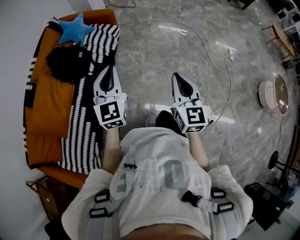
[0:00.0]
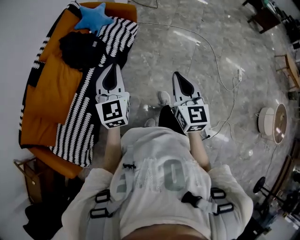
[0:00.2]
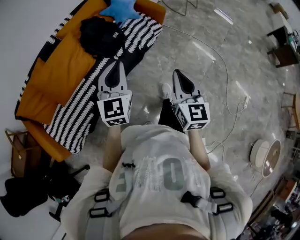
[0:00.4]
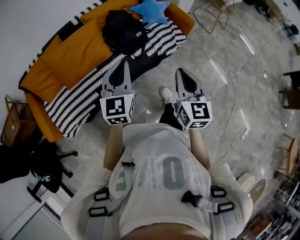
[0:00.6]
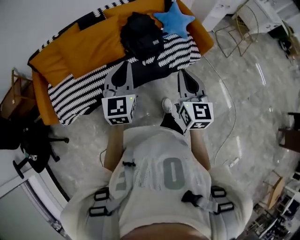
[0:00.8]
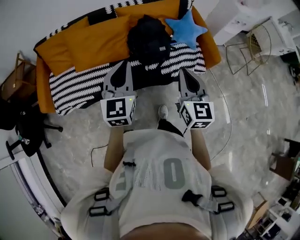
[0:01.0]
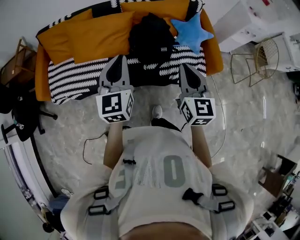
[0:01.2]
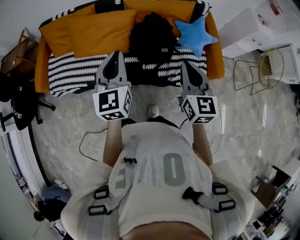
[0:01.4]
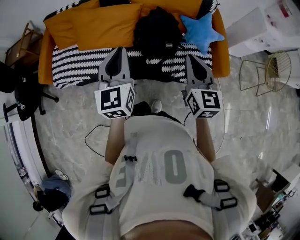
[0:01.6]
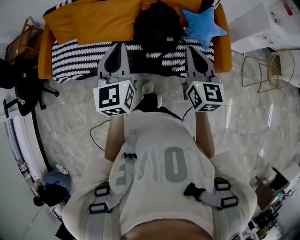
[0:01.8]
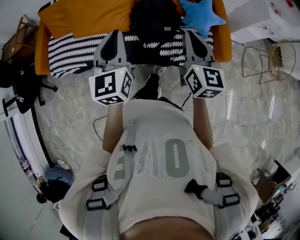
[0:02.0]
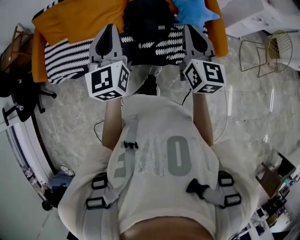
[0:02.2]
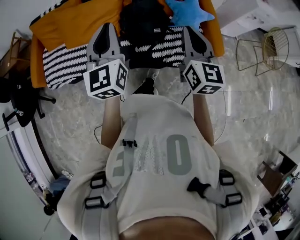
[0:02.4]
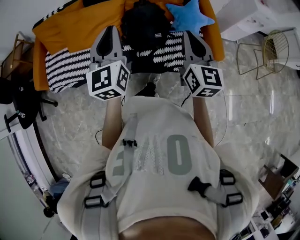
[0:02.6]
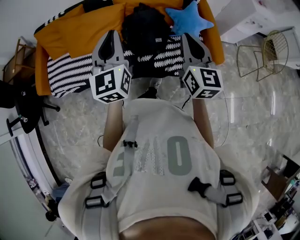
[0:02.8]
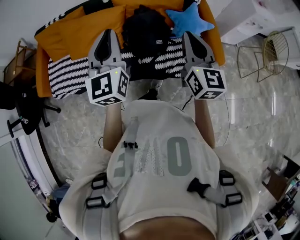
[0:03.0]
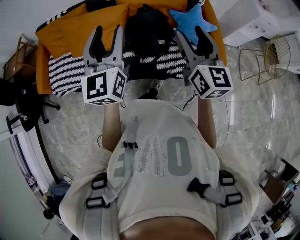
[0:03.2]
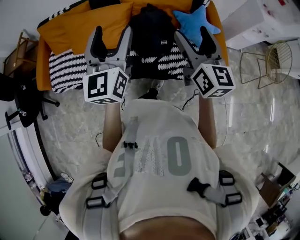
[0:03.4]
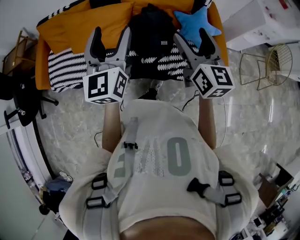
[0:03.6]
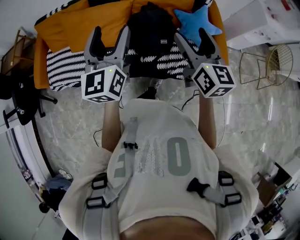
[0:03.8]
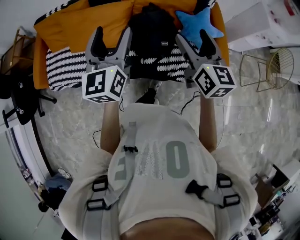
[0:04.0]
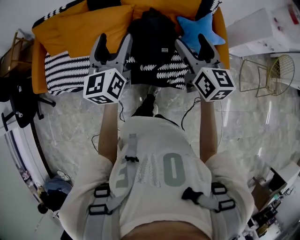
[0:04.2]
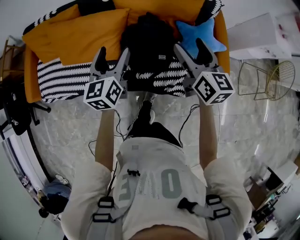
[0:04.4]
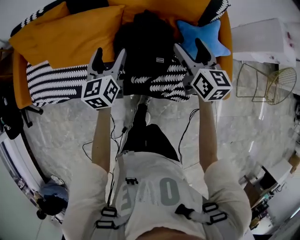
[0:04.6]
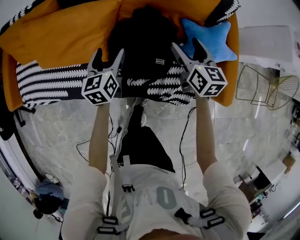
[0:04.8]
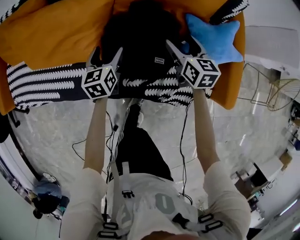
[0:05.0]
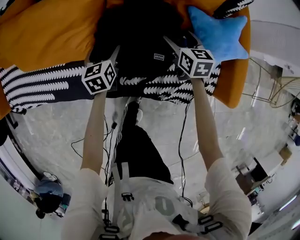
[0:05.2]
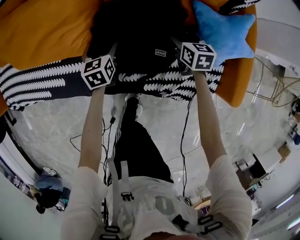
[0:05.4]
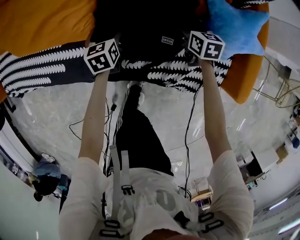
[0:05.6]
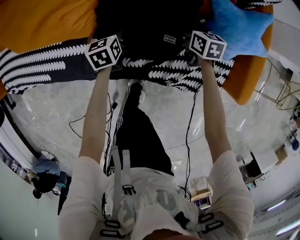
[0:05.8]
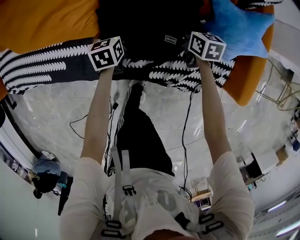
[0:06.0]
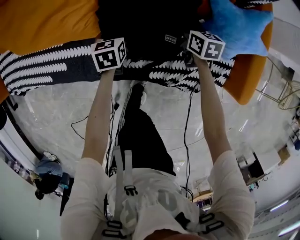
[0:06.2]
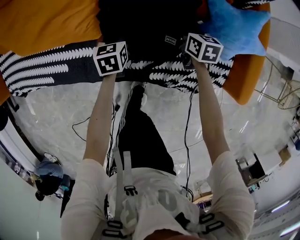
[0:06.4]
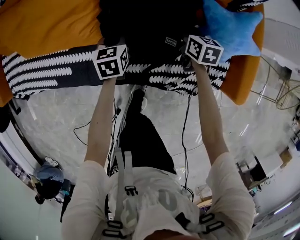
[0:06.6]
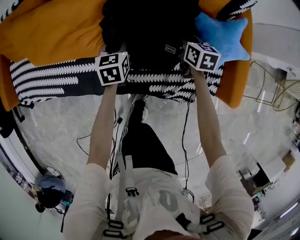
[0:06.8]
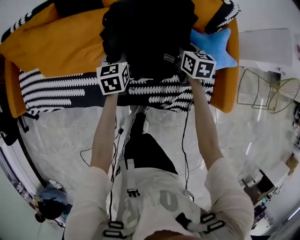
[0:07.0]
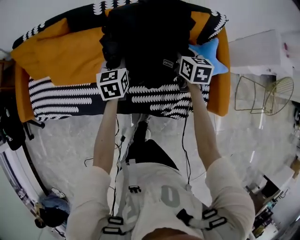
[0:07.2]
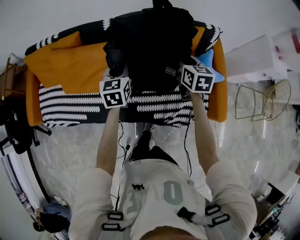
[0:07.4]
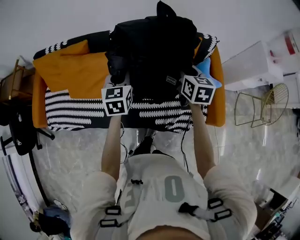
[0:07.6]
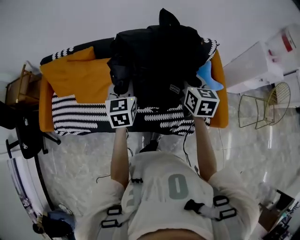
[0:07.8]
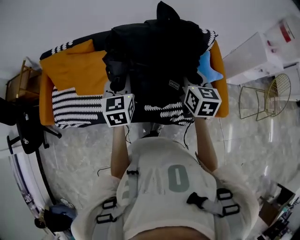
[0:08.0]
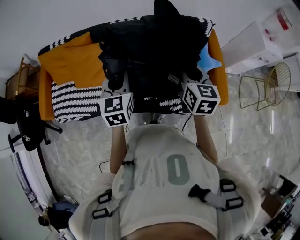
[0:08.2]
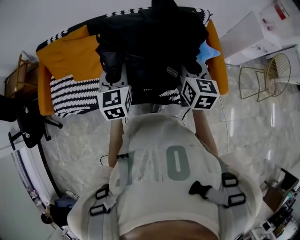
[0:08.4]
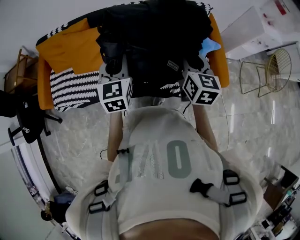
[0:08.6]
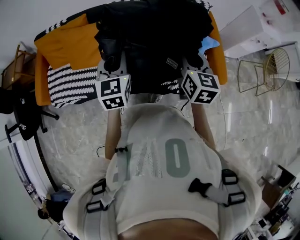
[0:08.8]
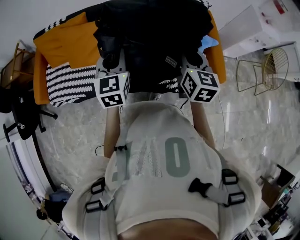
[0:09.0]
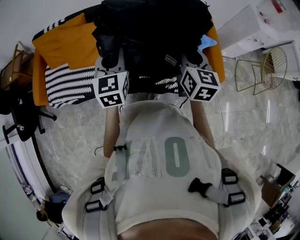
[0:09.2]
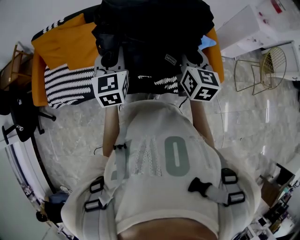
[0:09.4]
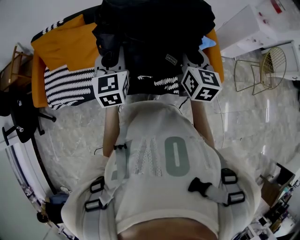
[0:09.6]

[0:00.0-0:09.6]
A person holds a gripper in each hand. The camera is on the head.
0:00.0 to 0:01.6: The right gripper ends up roughly 60 cm from where it was, and rotates roughly 80 degrees, while the left gripper moves about 30 cm, and rotates approximately 80 degrees.
0:01.6 to 0:03.2: The grippers both shift upward by roughly 5 cm. The right gripper opens up; the left gripper opens its fingers.
0:03.2 to 0:04.8: The two grippers go approximately 50 cm downward and forward. The right gripper swivels some 30 degrees. The left gripper tips its fingers downward by roughly 30 degrees, and opens up.
0:04.8 to 0:06.4: Both grippers move downward, some 25 cm. The right gripper rotates about 20 degrees, and closes. Meanwhile the left gripper turns by roughly 20 degrees, and closes its fingers.
0:06.4 to 0:08.0: The two grippers go about 50 cm upward. The right gripper swivels some 30 degrees; the left gripper changes its angle by roughly 30 degrees.
0:08.0 to 0:09.6: The grippers both shift backward by roughly 10 cm.

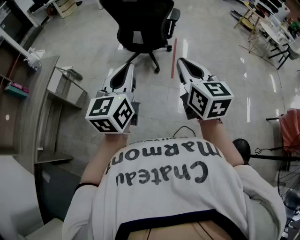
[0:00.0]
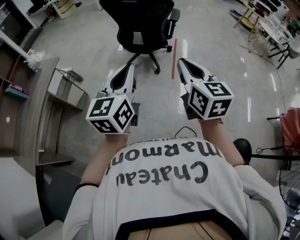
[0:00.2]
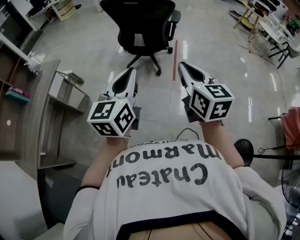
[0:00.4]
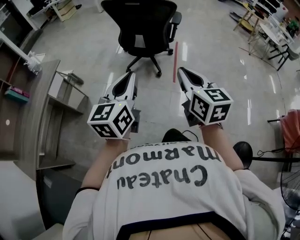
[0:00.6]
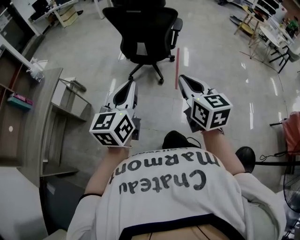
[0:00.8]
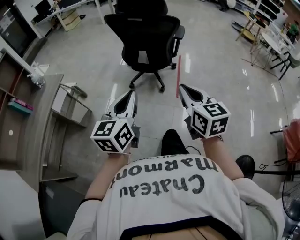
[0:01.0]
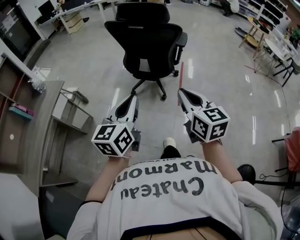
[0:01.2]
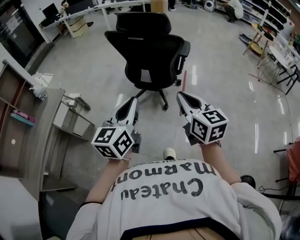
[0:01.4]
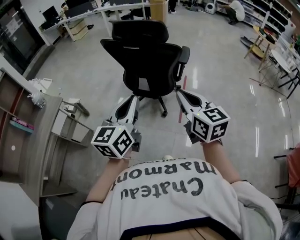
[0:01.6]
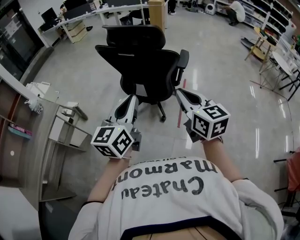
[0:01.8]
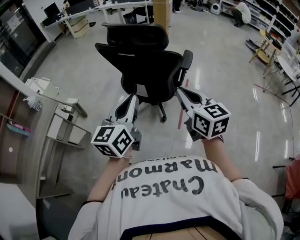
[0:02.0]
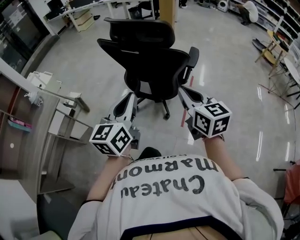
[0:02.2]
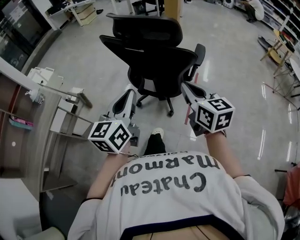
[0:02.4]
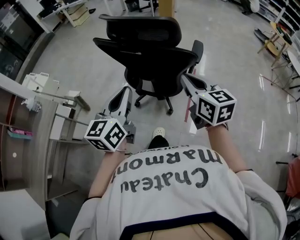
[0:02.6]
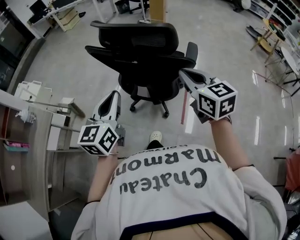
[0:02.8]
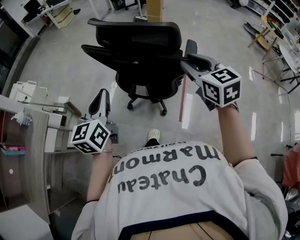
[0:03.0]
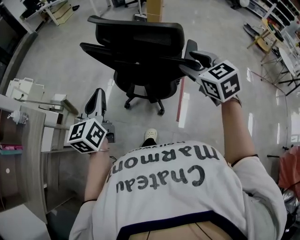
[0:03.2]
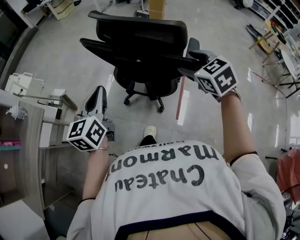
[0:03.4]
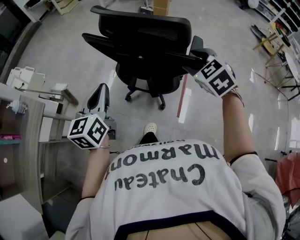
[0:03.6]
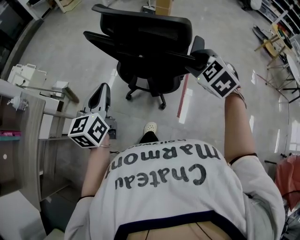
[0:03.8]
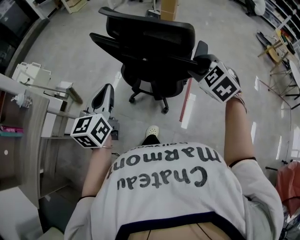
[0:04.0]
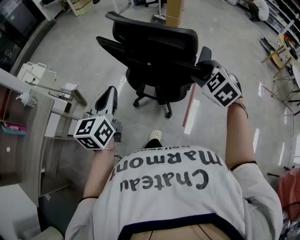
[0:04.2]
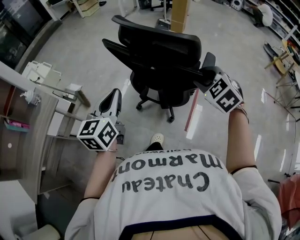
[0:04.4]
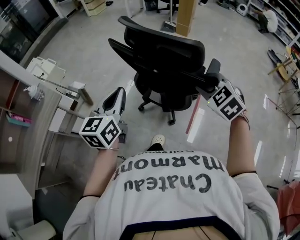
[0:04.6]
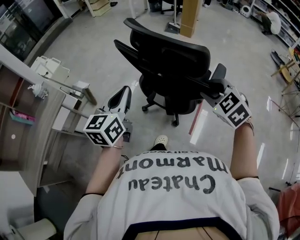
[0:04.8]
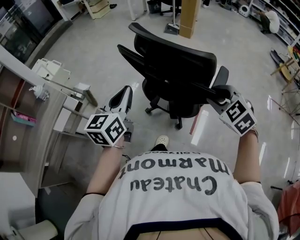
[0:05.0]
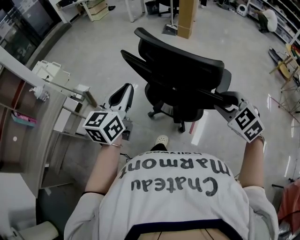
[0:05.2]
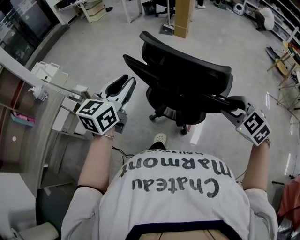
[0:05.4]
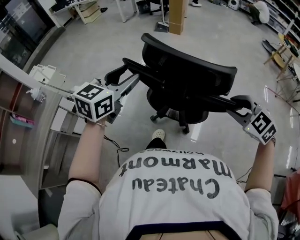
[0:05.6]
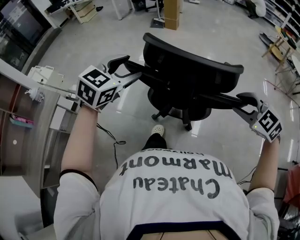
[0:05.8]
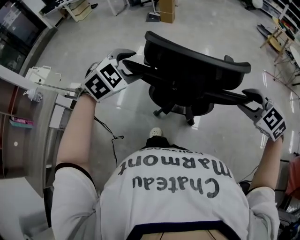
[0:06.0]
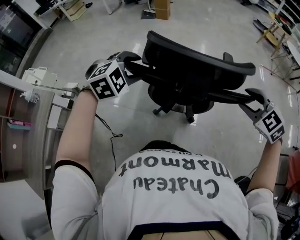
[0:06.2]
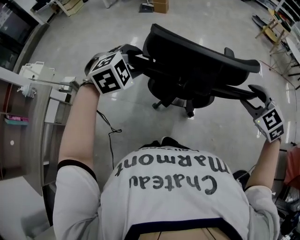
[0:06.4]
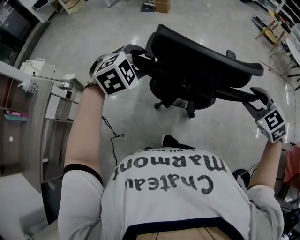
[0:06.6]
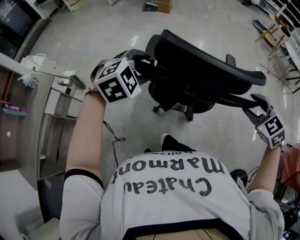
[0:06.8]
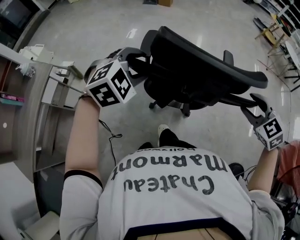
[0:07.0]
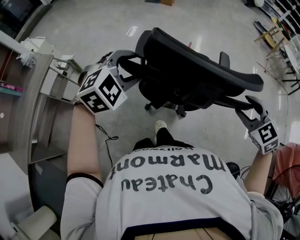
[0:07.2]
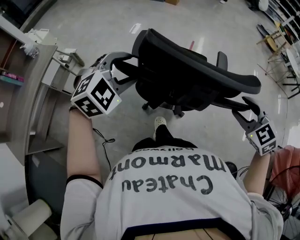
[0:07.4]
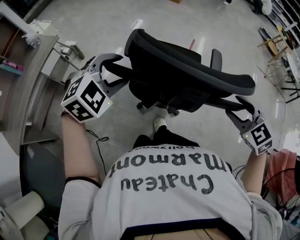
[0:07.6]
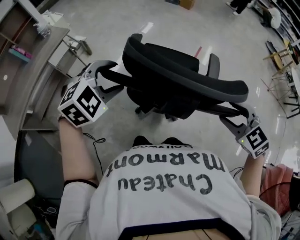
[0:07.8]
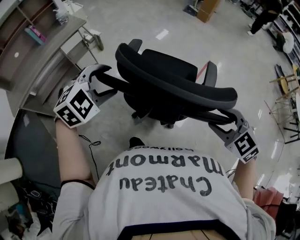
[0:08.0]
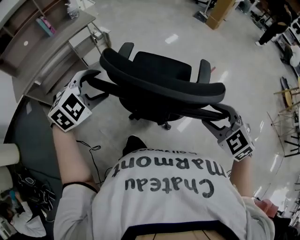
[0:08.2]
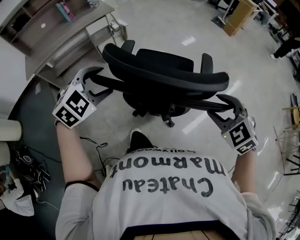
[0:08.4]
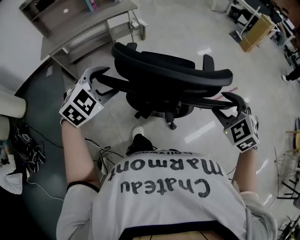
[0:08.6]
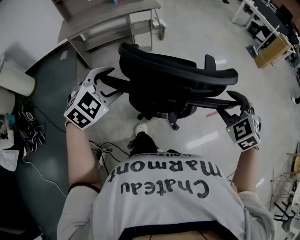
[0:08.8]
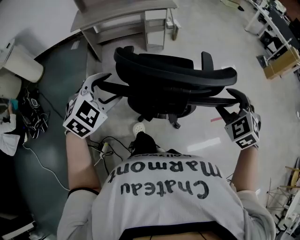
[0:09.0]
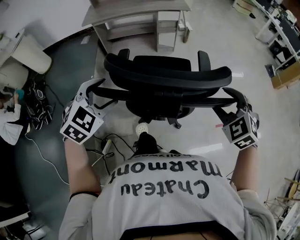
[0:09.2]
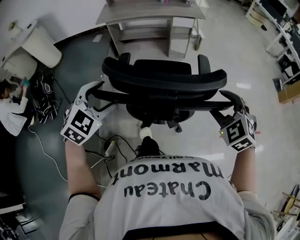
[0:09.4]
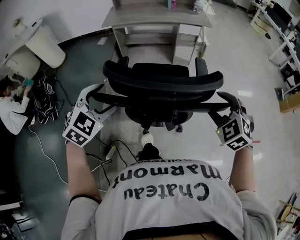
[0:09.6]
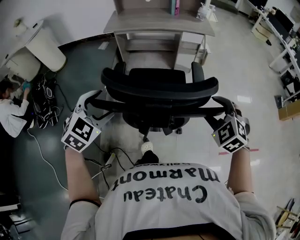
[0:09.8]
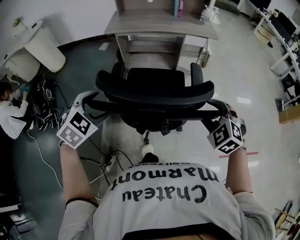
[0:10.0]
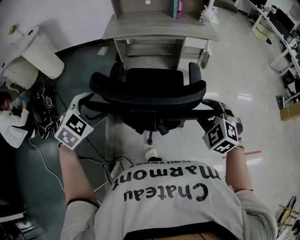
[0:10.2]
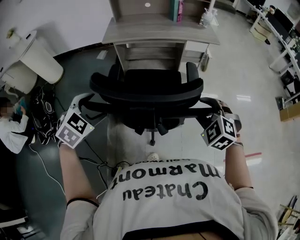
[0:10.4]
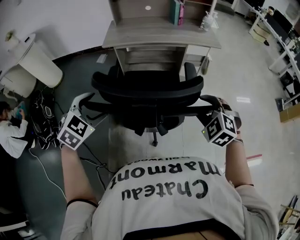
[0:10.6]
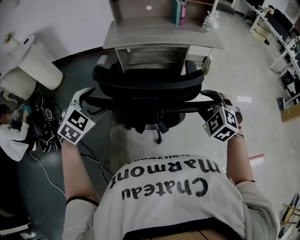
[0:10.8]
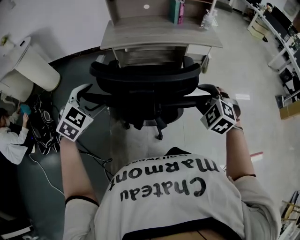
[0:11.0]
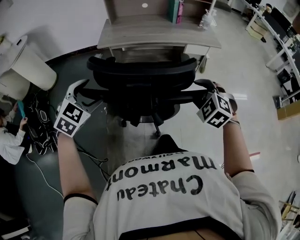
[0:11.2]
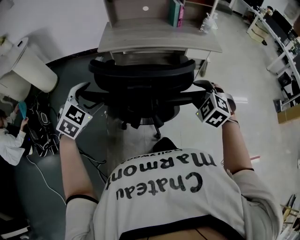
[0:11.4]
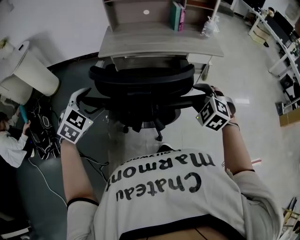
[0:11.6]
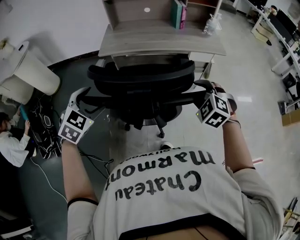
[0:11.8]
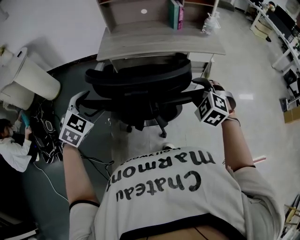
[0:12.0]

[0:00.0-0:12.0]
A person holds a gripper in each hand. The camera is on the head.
0:00.0 to 0:01.6: The two grippers go approximately 25 cm forward.
0:01.6 to 0:03.0: Both grippers travel together forward, roughly 25 cm. The right gripper opens up.
0:03.0 to 0:04.4: The right gripper moves downward, approximately 5 cm, turns by roughly 40 degrees, and opens, then closes again.
0:04.4 to 0:06.0: The left gripper goes about 15 cm to the right, twists about 60 degrees clockwise, seen from behind, and opens its fingers. The right gripper is displaced backward and to the right by about 35 cm.
0:06.0 to 0:07.6: Both grippers travel together backward, some 30 cm.
0:07.6 to 0:09.0: The left gripper moves roughly 30 cm, and rotates approximately 60 degrees, while the right gripper shifts by approximately 15 cm, and rolls counterclockwise, seen from behind, by approximately 50 degrees.
0:09.0 to 0:10.4: The left gripper moves to the left and forward, about 35 cm, and swivels about 20 degrees. Meanwhile the right gripper moves forward and to the left, about 40 cm, and rotates about 20 degrees.
0:10.4 to 0:12.0: Both grippers move forward, about 20 cm.

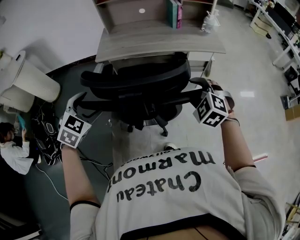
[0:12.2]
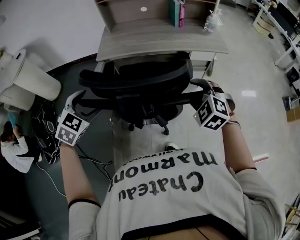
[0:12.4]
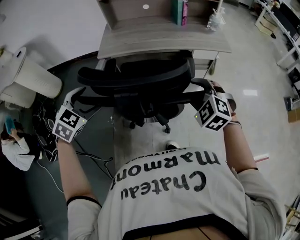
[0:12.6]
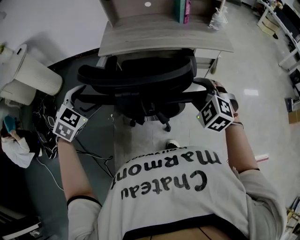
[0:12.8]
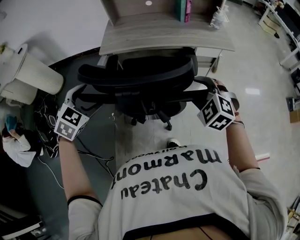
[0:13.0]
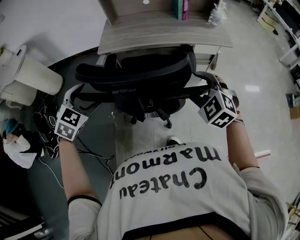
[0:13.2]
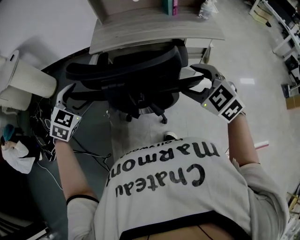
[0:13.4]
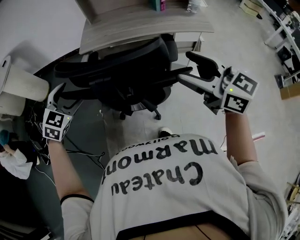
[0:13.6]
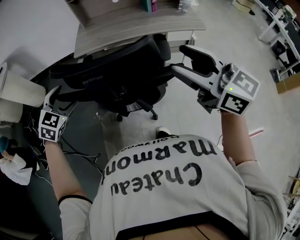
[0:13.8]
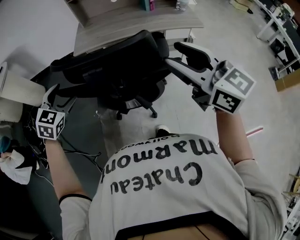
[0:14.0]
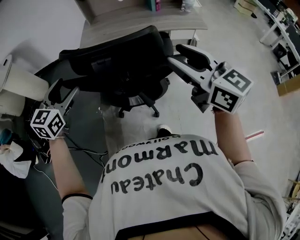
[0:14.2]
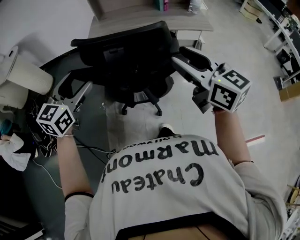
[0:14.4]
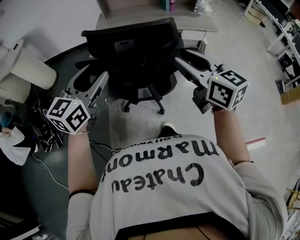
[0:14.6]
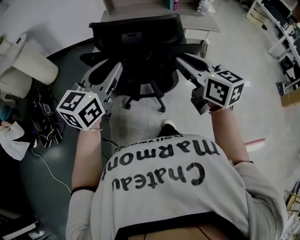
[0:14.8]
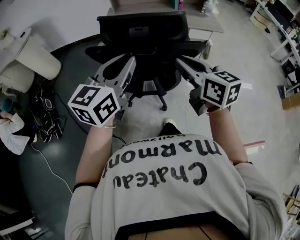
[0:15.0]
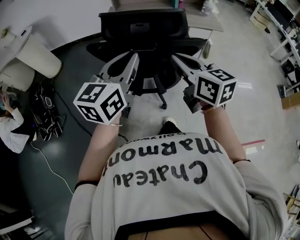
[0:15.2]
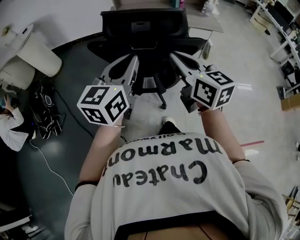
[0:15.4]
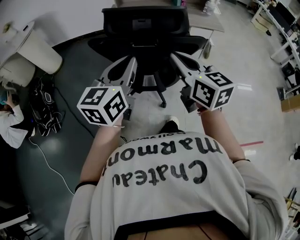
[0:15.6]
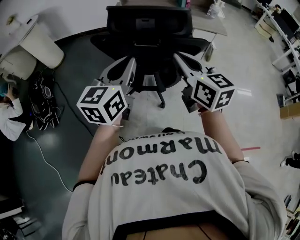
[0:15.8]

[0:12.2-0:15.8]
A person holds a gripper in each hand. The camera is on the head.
0:12.2 to 0:14.0: The right gripper travels upward and backward by some 20 cm, and angles its fingers upward, by roughly 40 degrees.
0:14.0 to 0:15.8: The left gripper is displaced backward and to the right by roughly 20 cm, points its fingers about 30 degrees further upward, and closes. The right gripper goes approximately 15 cm to the left, backward and downward, and closes.
